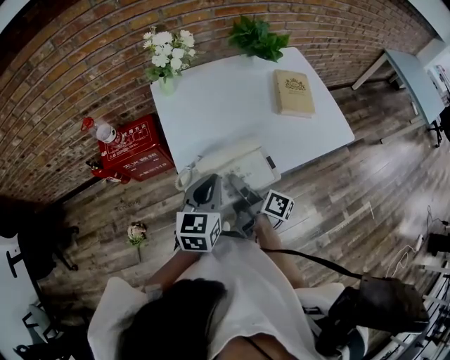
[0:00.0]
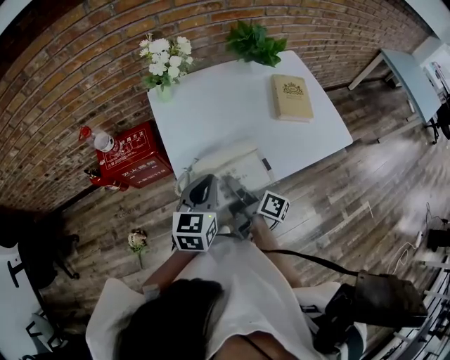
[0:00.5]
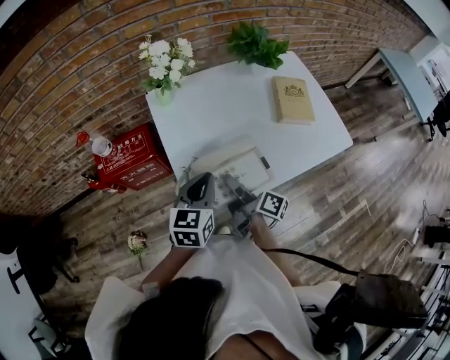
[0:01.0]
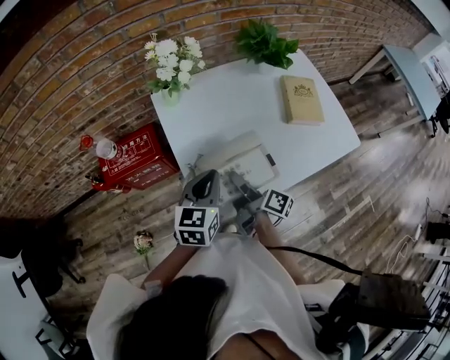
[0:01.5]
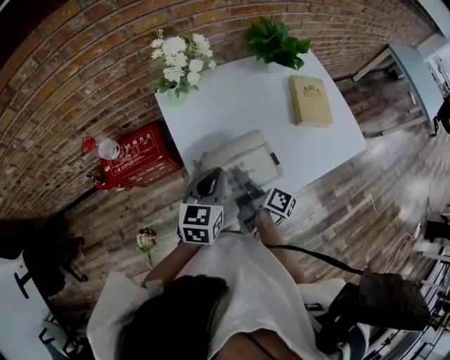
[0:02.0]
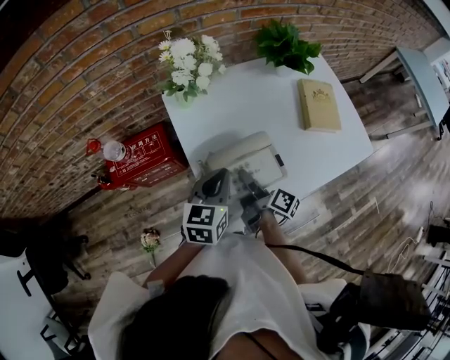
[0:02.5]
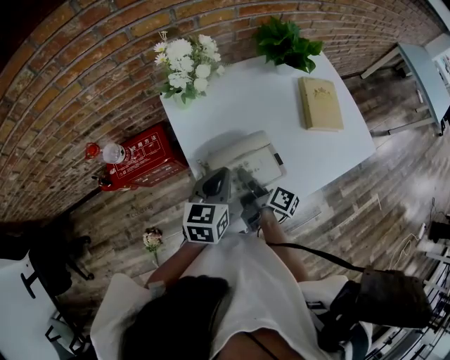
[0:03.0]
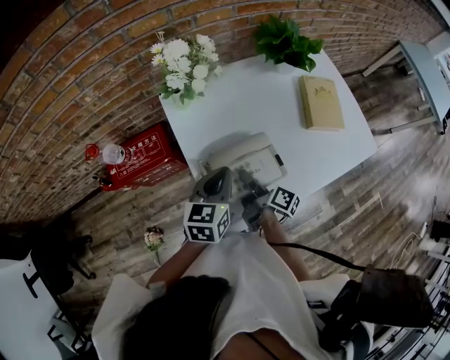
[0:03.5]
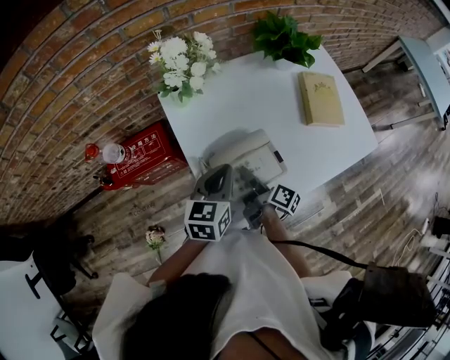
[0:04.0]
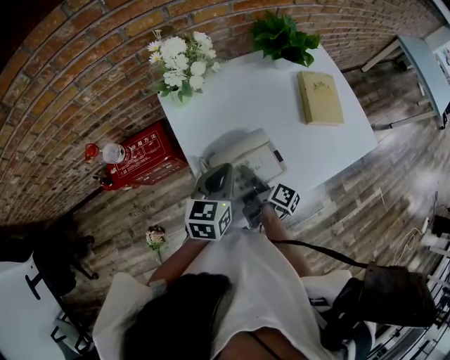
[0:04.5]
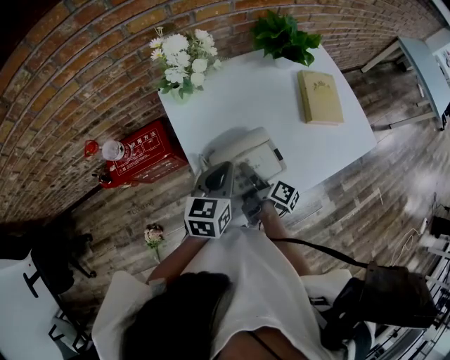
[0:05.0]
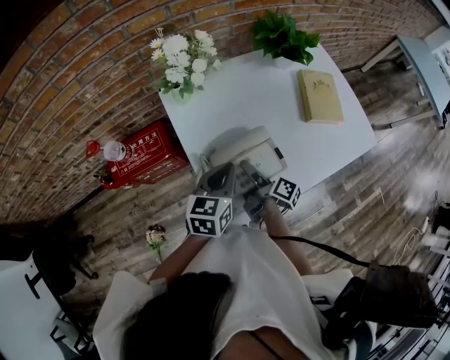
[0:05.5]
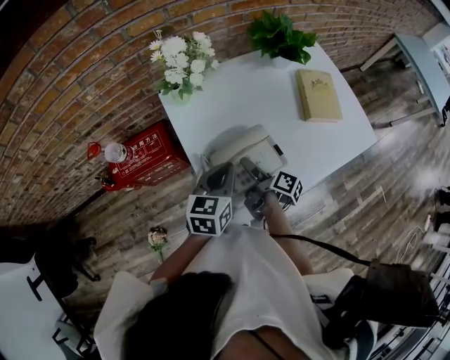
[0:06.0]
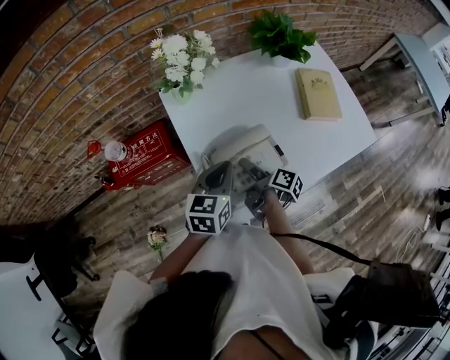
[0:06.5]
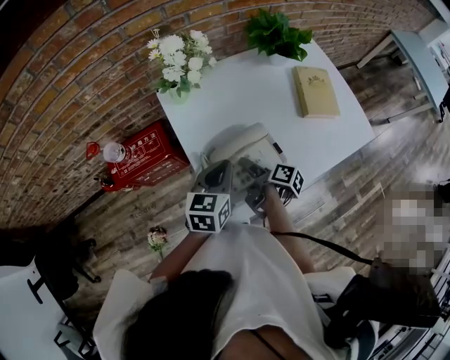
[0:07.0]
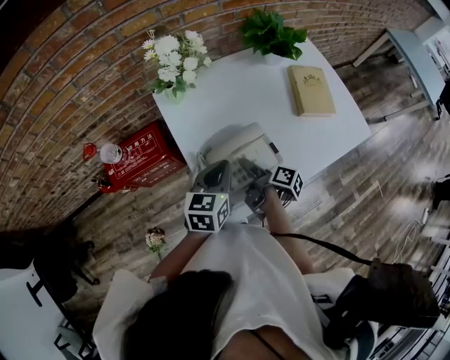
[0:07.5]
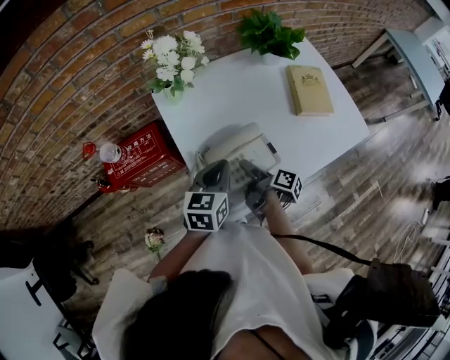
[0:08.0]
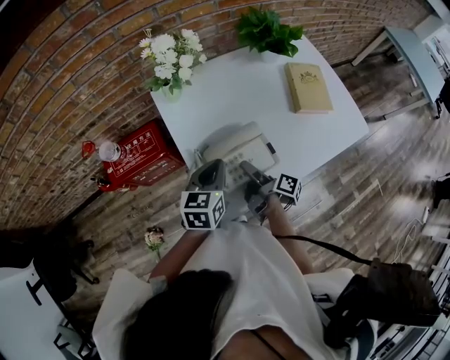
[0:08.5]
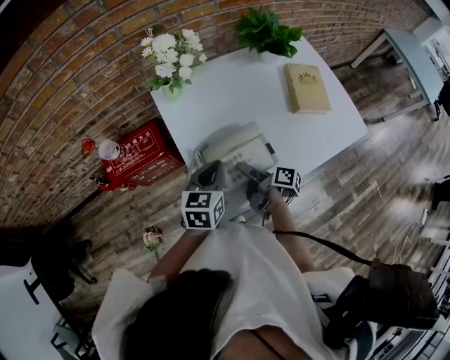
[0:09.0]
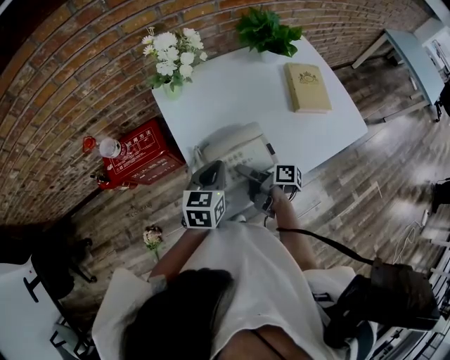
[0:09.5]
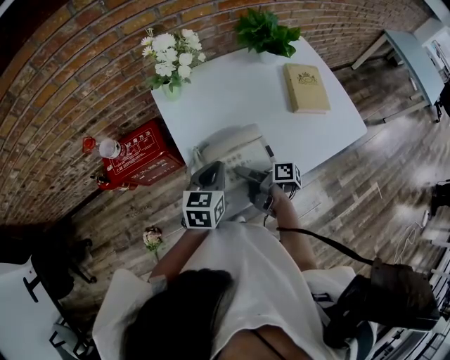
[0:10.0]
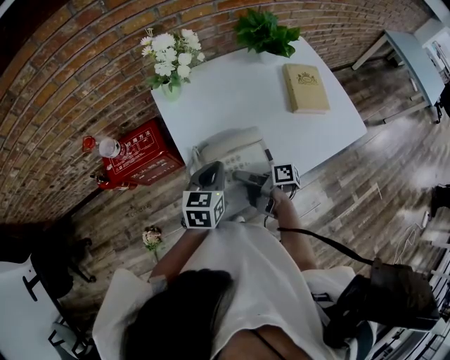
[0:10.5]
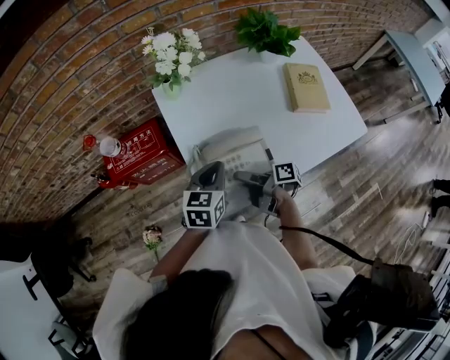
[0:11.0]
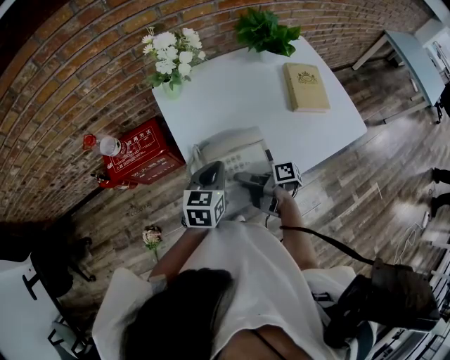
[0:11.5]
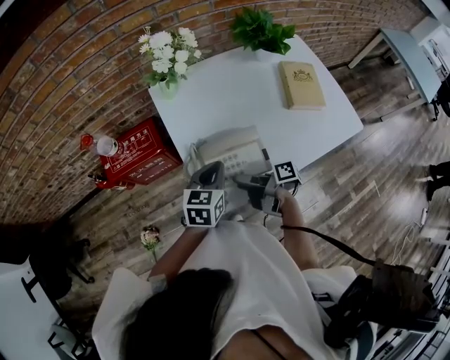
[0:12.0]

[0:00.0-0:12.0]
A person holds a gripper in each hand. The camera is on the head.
0:00.0 to 0:02.0: The left gripper moves about 15 cm.

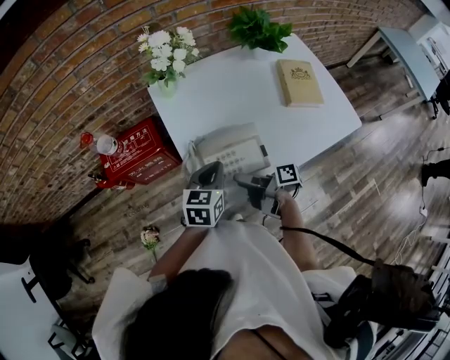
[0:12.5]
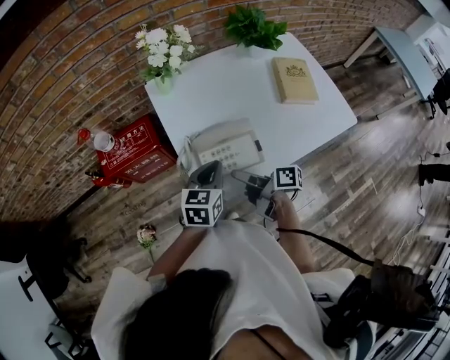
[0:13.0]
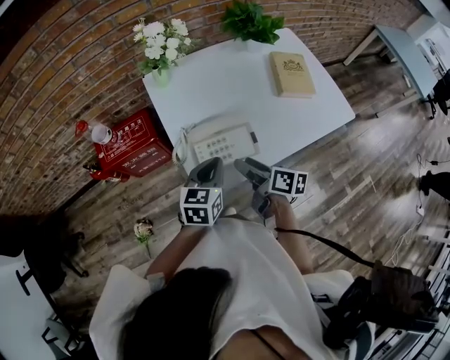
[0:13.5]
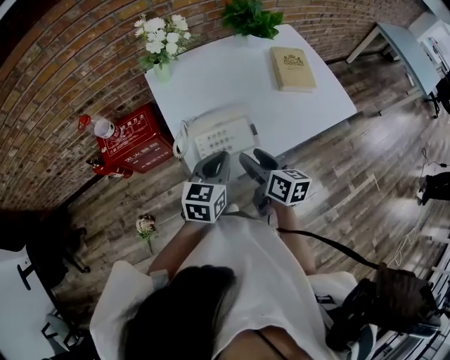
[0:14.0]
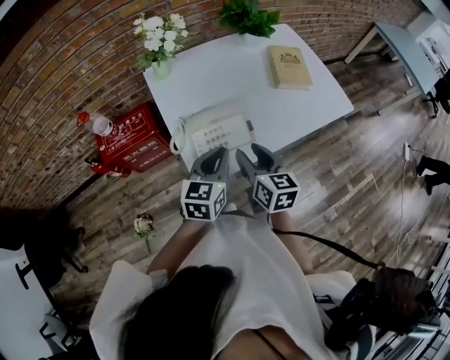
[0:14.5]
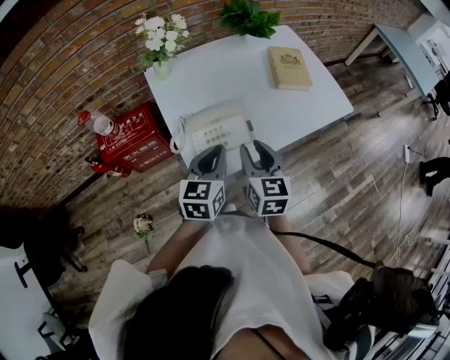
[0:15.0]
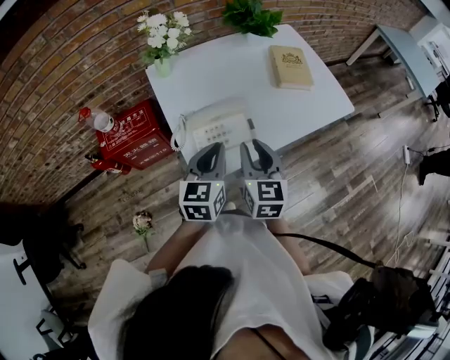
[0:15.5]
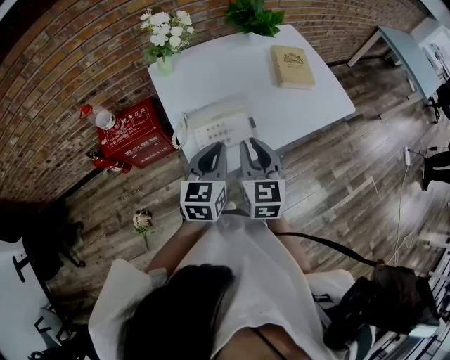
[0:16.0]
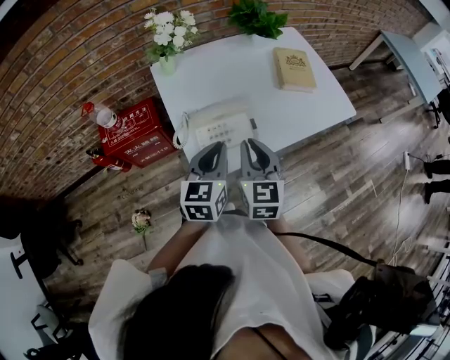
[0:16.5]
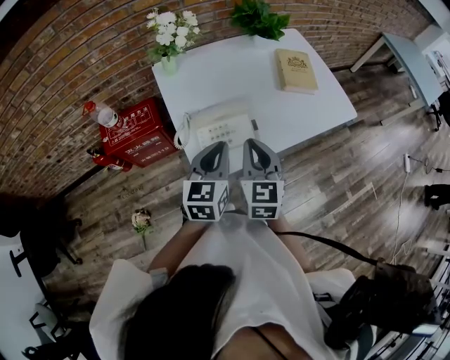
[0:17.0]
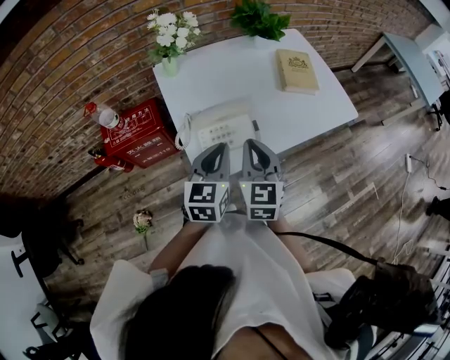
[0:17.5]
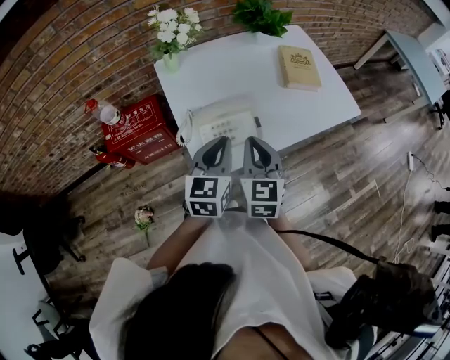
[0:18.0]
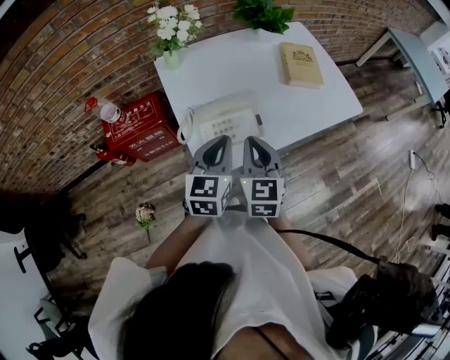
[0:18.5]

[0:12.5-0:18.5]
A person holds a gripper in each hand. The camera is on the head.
0:12.5 to 0:14.5: The left gripper shifts by roughly 10 cm.

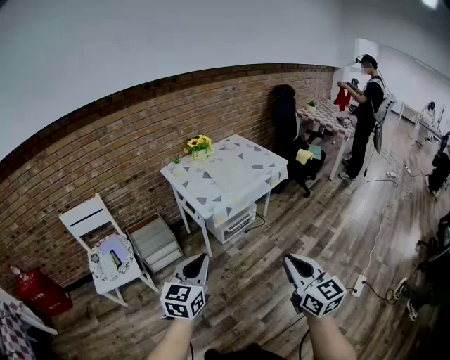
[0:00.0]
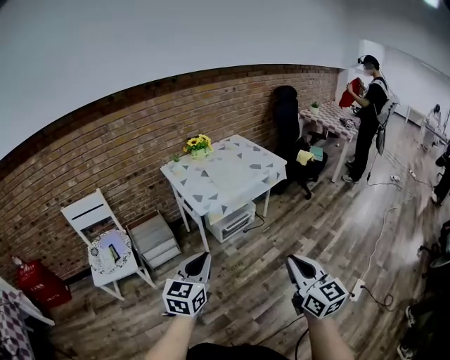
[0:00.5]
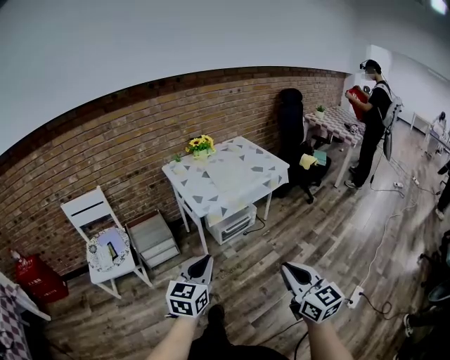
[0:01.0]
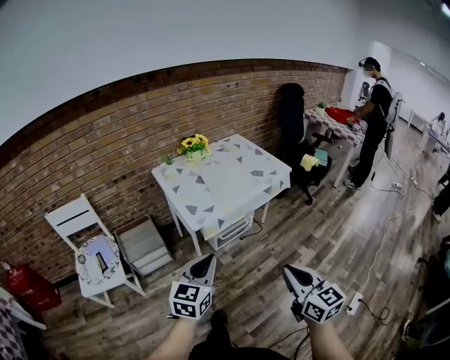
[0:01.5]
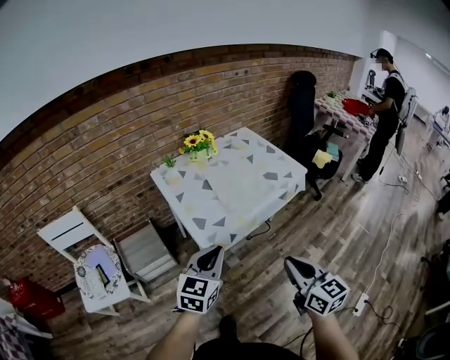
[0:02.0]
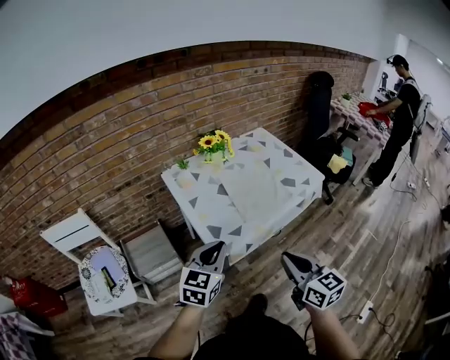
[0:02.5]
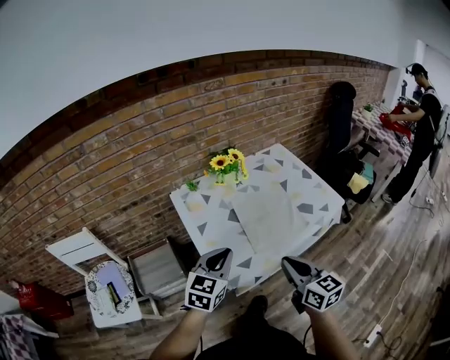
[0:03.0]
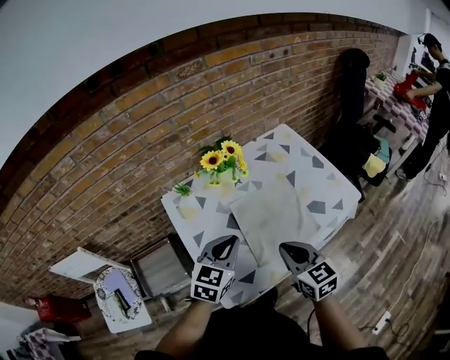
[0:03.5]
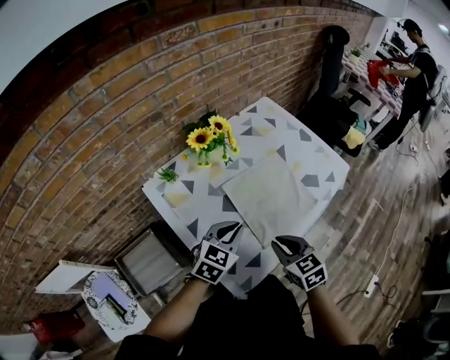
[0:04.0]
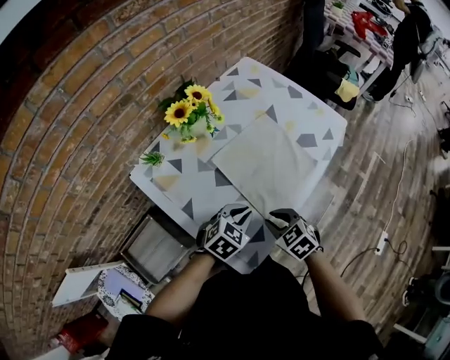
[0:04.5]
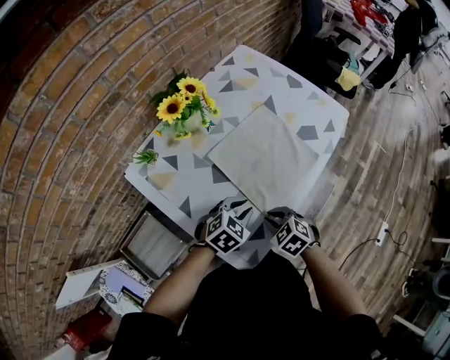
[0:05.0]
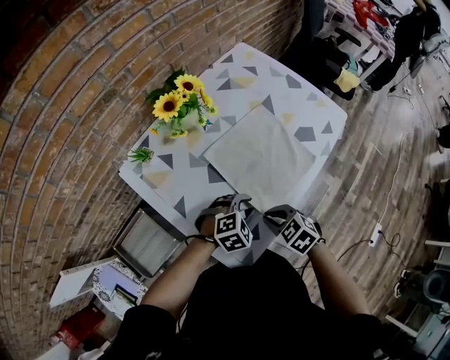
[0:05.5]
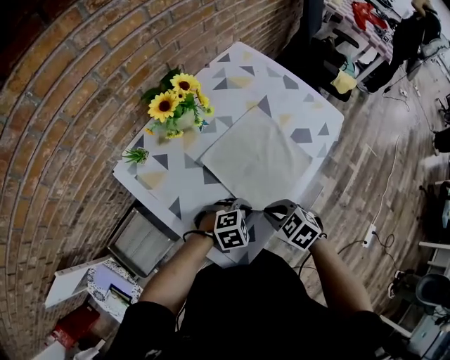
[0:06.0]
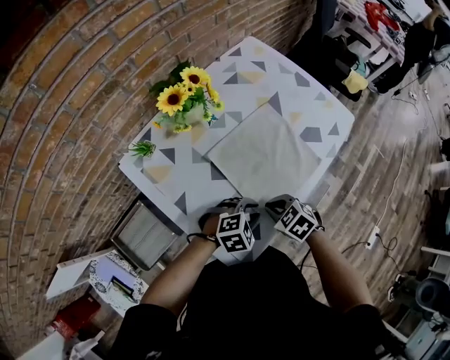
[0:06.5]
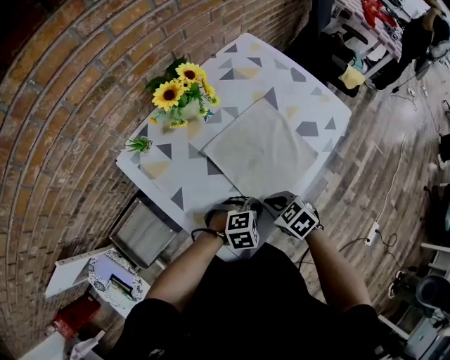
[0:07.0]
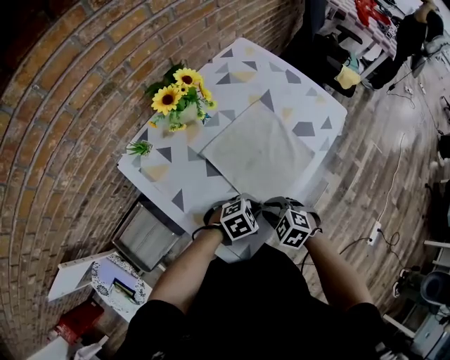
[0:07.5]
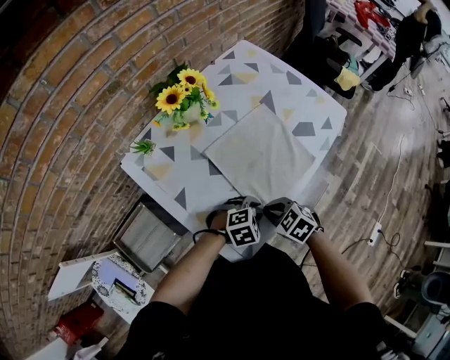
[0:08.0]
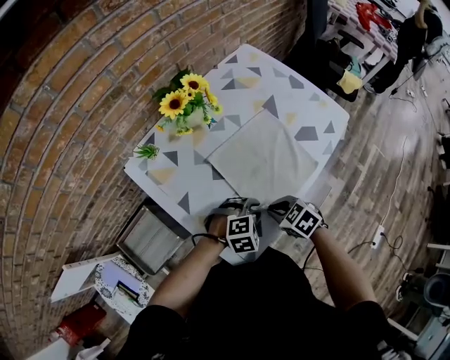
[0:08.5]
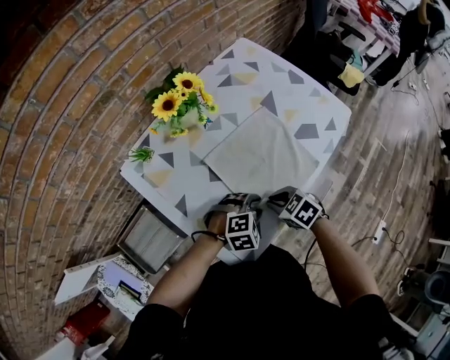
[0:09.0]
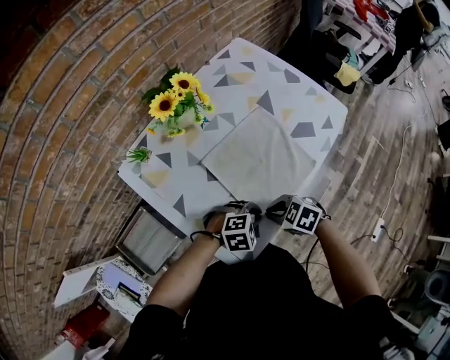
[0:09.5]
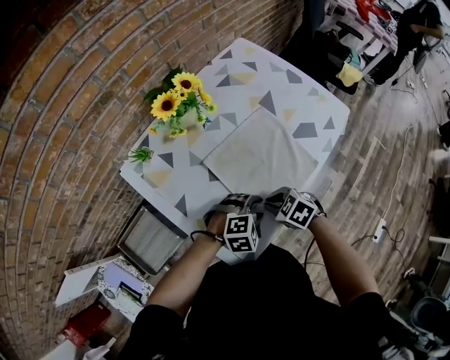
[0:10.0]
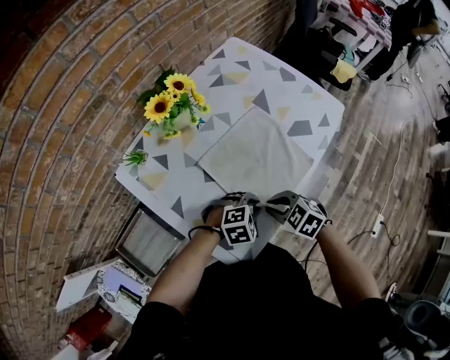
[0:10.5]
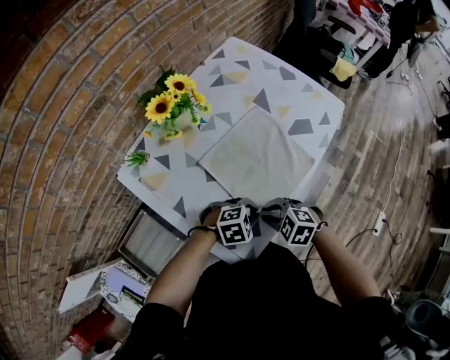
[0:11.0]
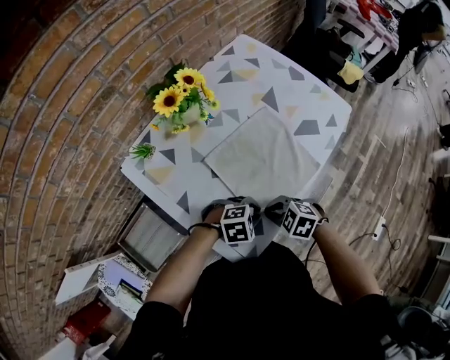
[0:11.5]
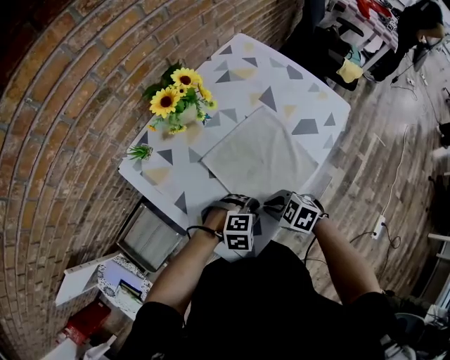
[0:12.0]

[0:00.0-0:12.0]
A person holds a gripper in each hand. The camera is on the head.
0:00.0 to 0:02.0: Both grippers move forward, approximately 25 cm.
0:02.0 to 0:04.0: The left gripper moves forward, about 35 cm, and rotates roughly 30 degrees; the right gripper heads forward and downward, covering approximately 40 cm, and swivels roughly 30 degrees.
0:04.0 to 0:06.0: The left gripper is displaced downward by some 15 cm, and swivels about 50 degrees. Meanwhile the right gripper goes approximately 10 cm downward, and turns by approximately 30 degrees.
0:06.0 to 0:08.0: The left gripper opens up.
0:08.0 to 0:10.0: The left gripper closes and opens again.
